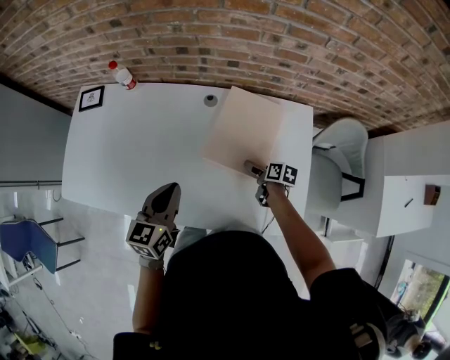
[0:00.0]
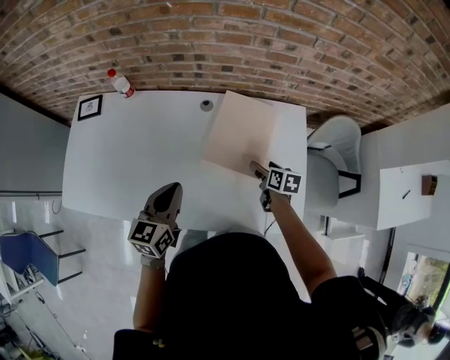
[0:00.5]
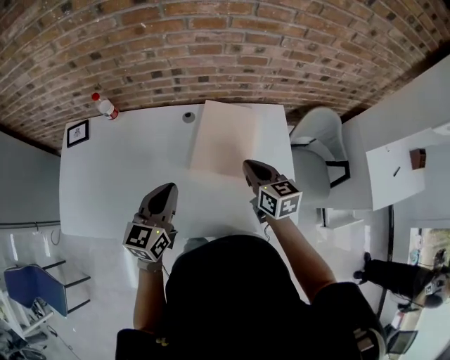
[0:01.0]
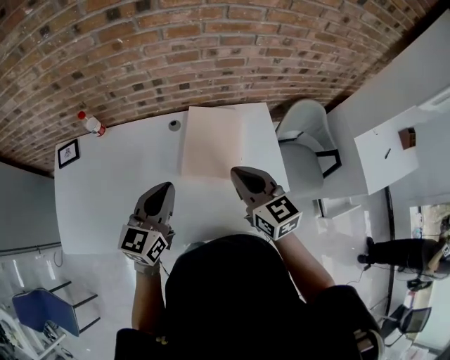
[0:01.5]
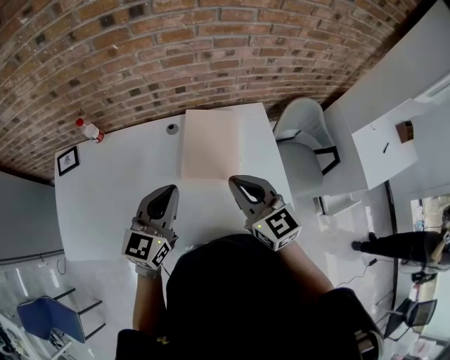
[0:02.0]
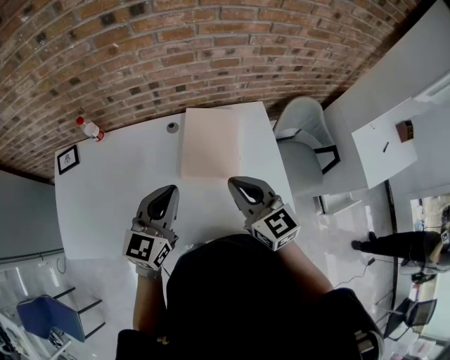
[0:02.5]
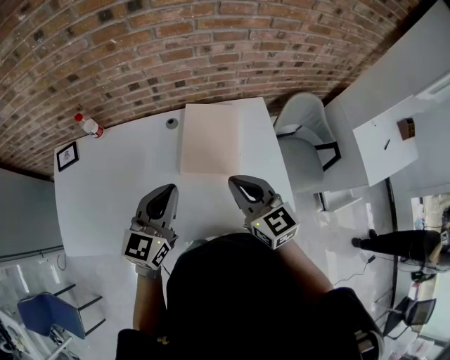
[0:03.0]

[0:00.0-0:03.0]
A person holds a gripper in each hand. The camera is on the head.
0:00.0 to 0:01.5: The left gripper heads upward, covering about 10 cm, and changes its angle by about 20 degrees, while the right gripper travels upward by some 35 cm, angles its fingers upward, by about 30 degrees, and closes up.
0:01.5 to 0:03.0: The grippers move only a little.

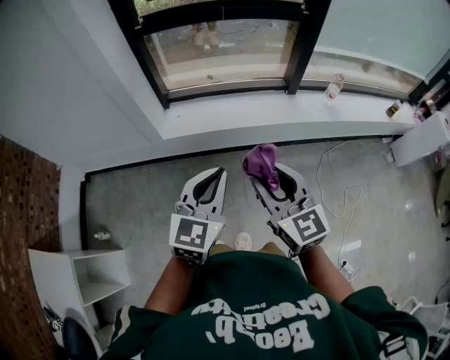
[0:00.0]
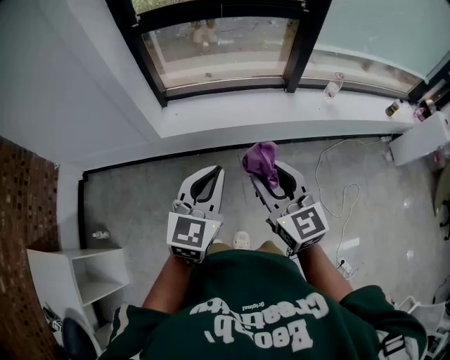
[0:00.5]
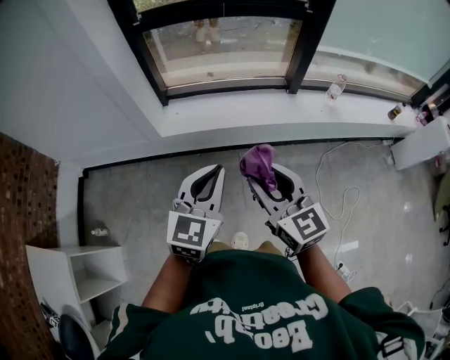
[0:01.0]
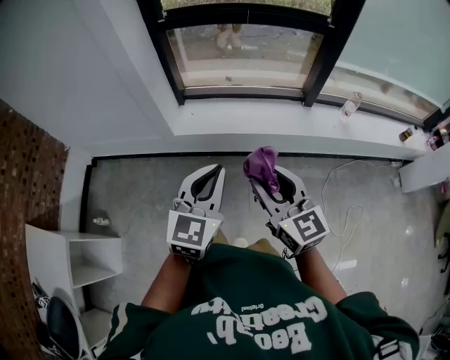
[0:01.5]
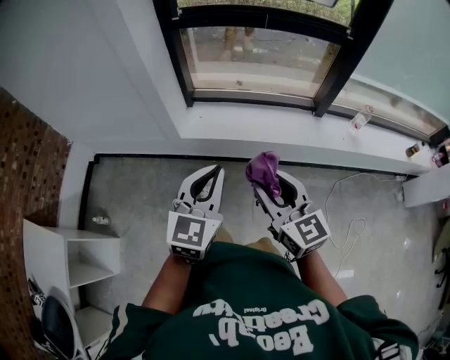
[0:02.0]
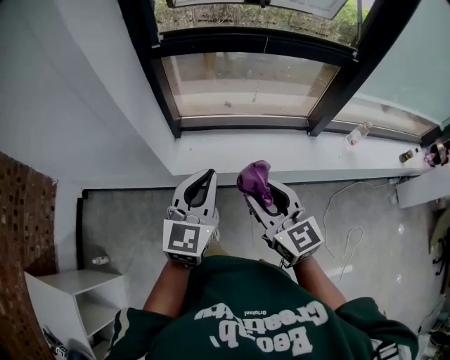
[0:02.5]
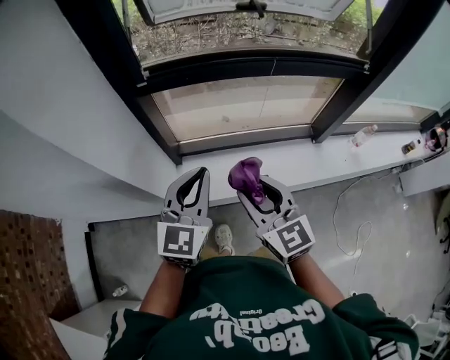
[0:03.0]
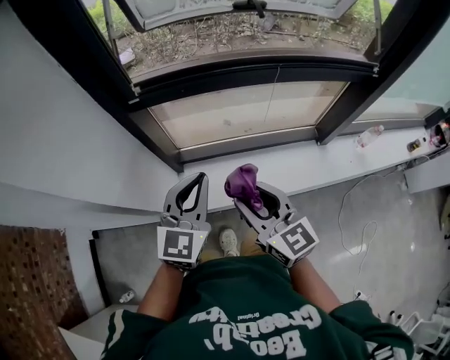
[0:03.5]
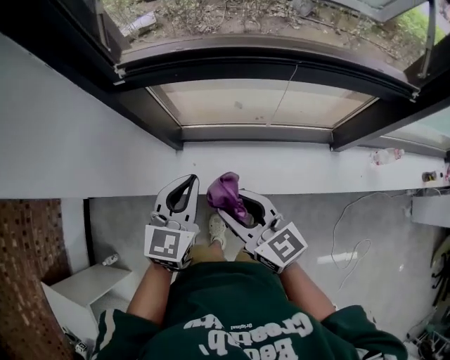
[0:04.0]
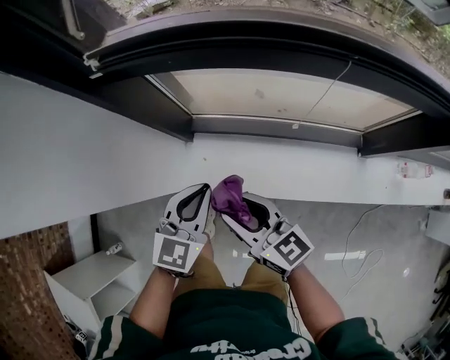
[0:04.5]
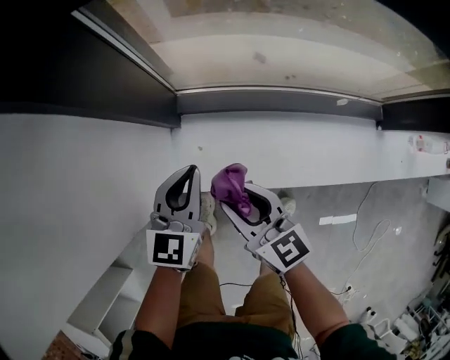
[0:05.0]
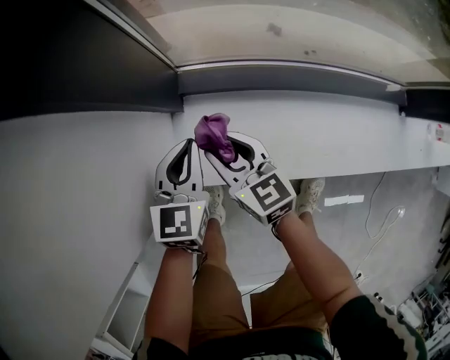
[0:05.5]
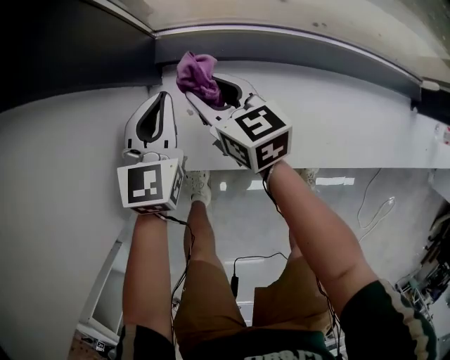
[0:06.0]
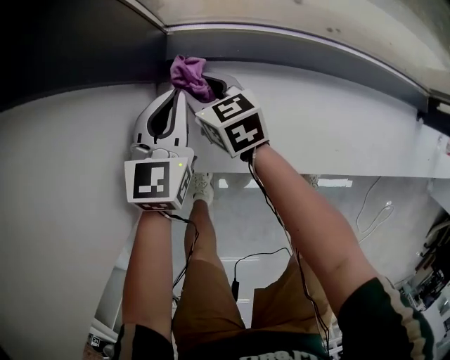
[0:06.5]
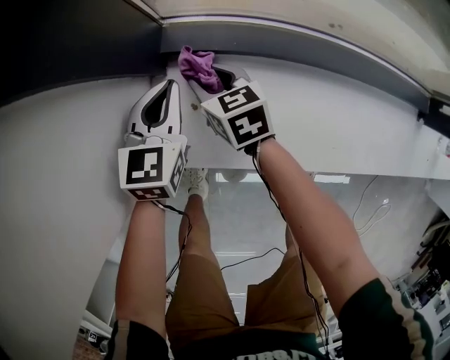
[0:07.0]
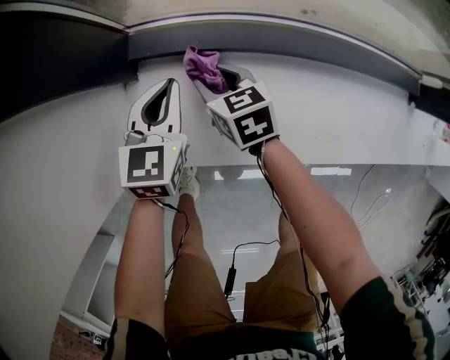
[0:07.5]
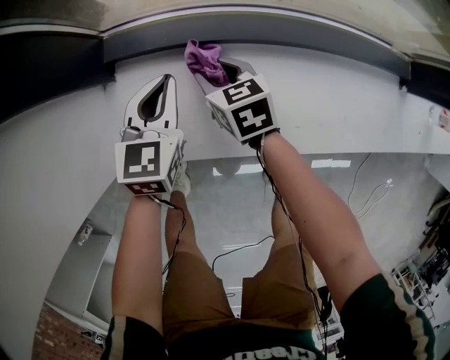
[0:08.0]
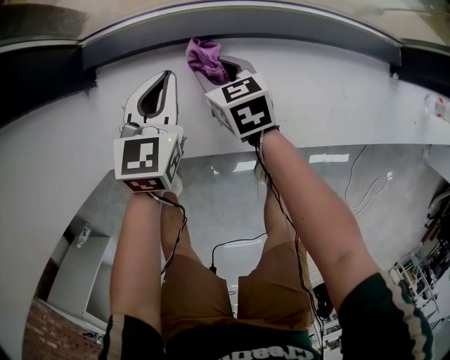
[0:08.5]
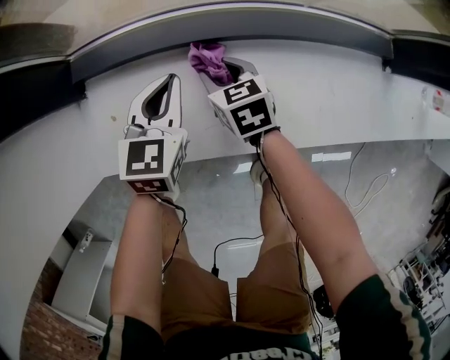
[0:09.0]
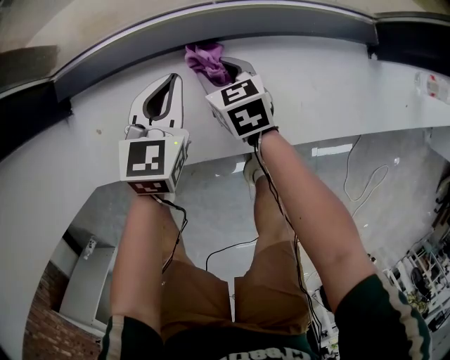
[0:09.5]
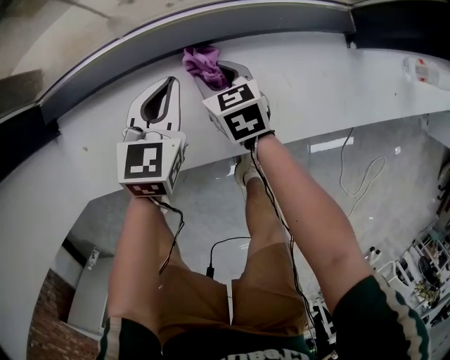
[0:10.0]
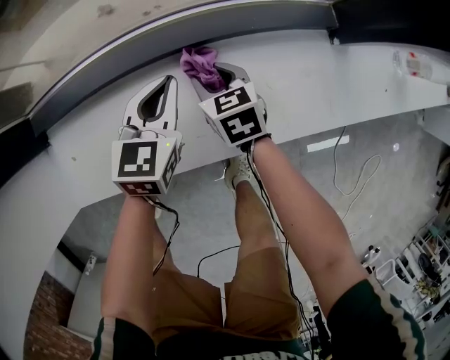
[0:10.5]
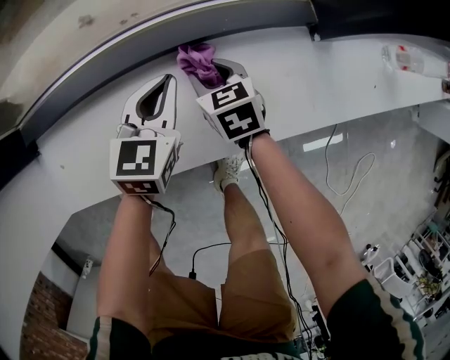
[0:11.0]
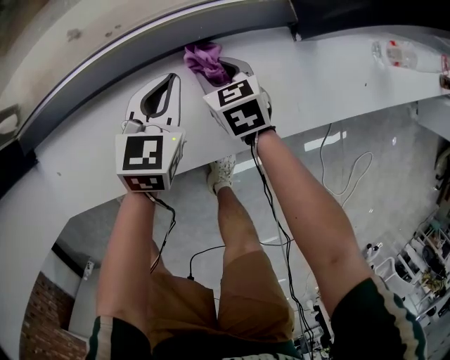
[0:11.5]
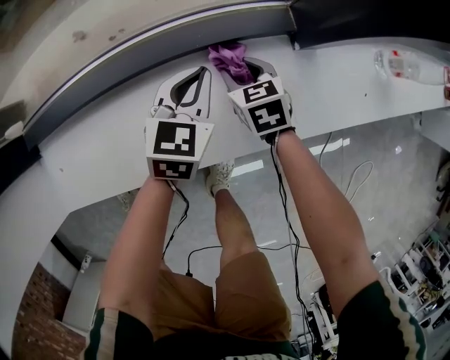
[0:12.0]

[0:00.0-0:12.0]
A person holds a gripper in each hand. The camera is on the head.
0:00.0 to 0:02.0: The grippers both shift forward by some 5 cm.
0:02.0 to 0:04.0: Both grippers are carried forward, roughly 40 cm.
0:04.0 to 0:06.0: The grippers both shift downward and forward by approximately 50 cm.
0:06.0 to 0:08.0: The right gripper heads to the right and downward, covering roughly 15 cm, while the left gripper heads to the right, covering about 10 cm.
0:08.0 to 0:10.0: Both grippers travel together to the right, some 25 cm.
0:10.0 to 0:12.0: The two grippers go some 25 cm to the right.

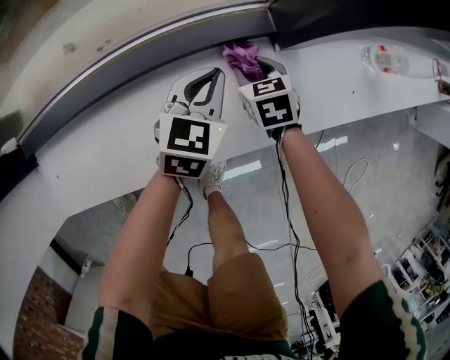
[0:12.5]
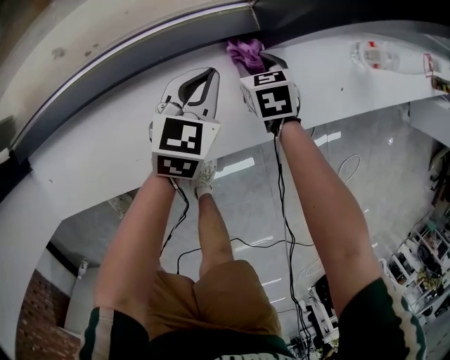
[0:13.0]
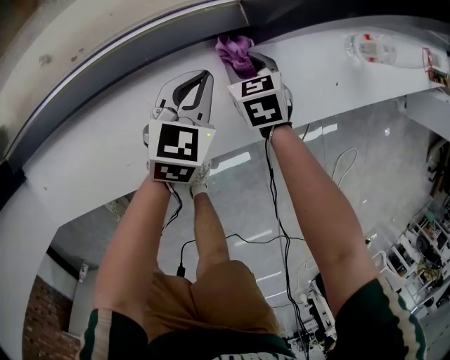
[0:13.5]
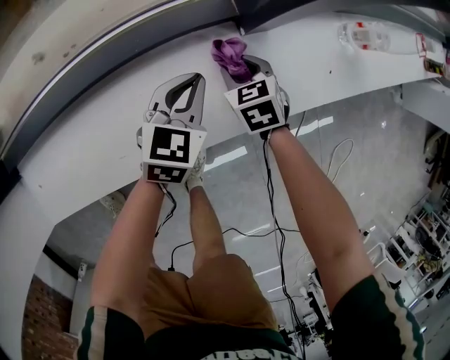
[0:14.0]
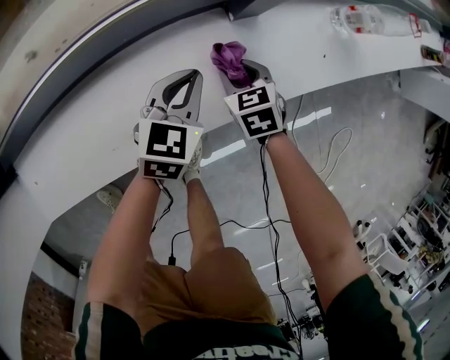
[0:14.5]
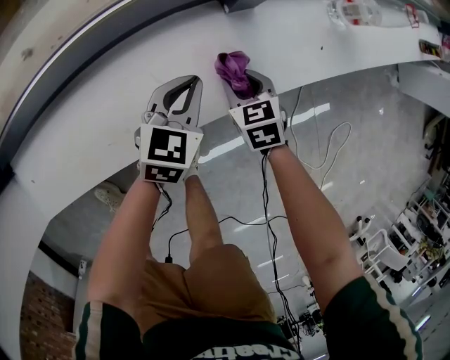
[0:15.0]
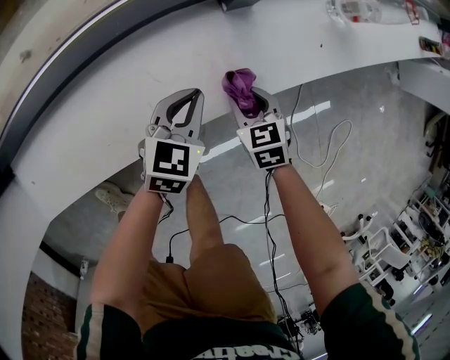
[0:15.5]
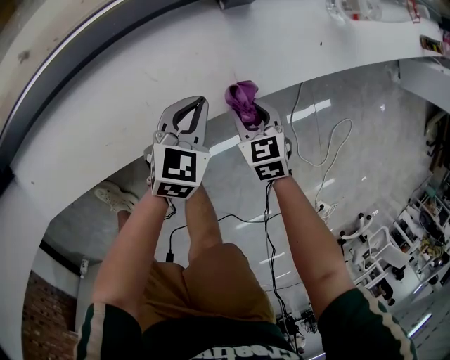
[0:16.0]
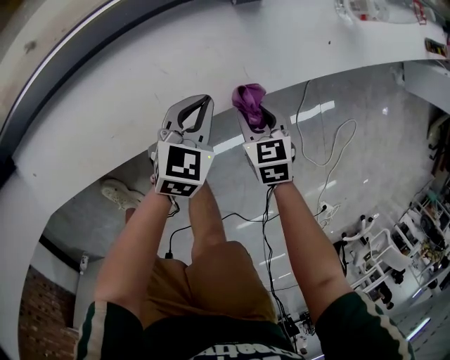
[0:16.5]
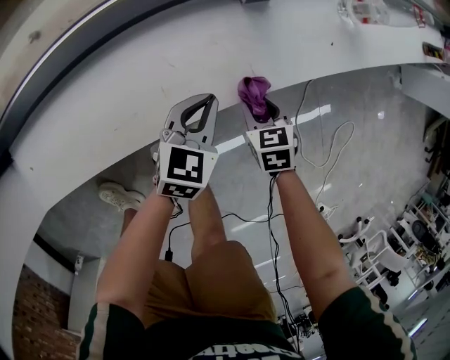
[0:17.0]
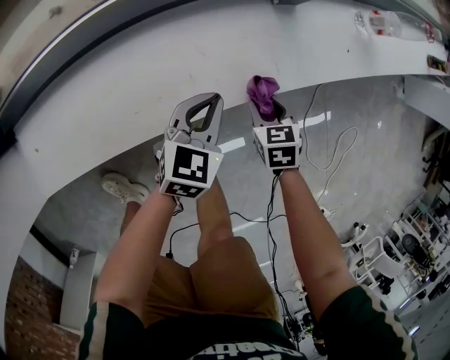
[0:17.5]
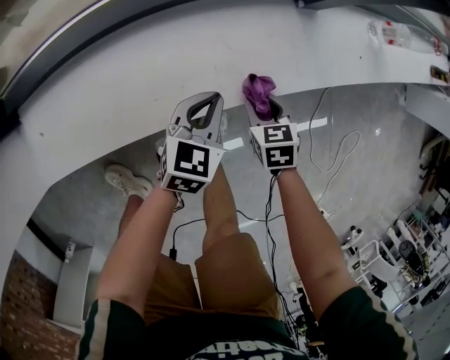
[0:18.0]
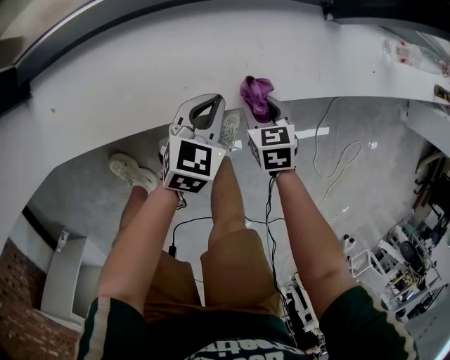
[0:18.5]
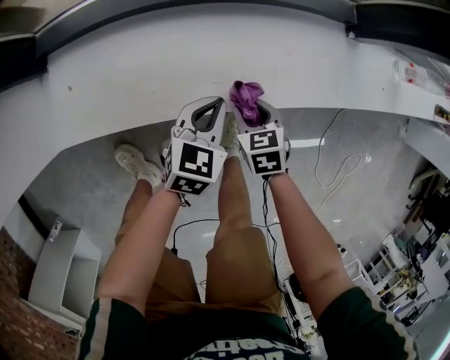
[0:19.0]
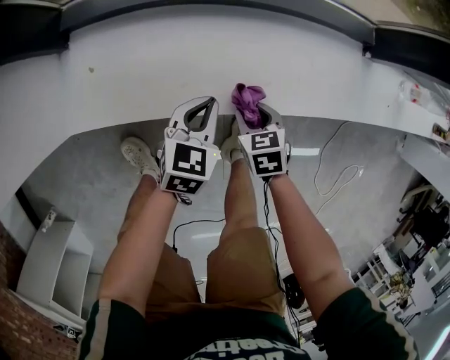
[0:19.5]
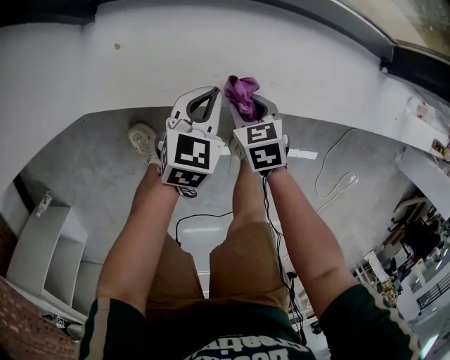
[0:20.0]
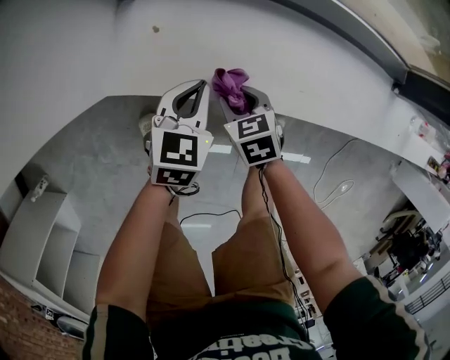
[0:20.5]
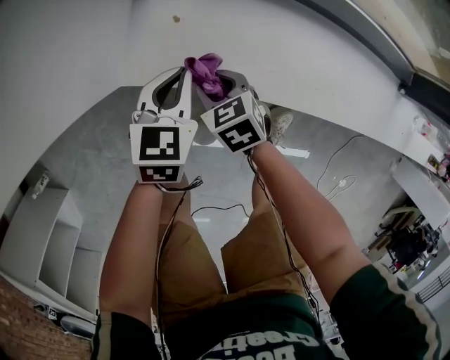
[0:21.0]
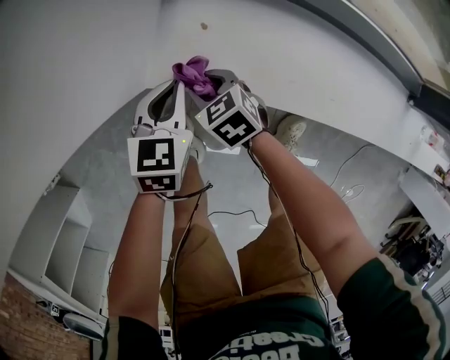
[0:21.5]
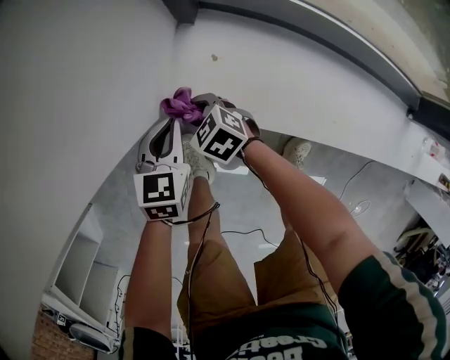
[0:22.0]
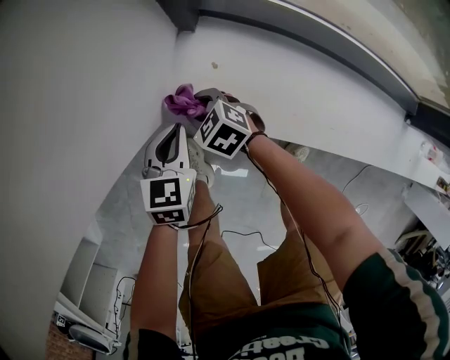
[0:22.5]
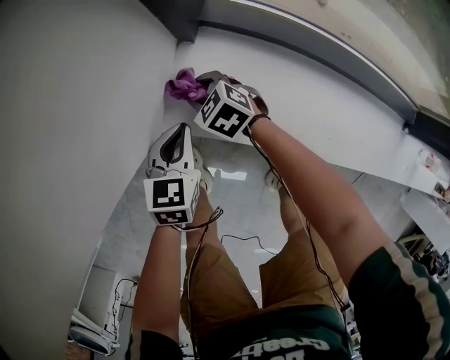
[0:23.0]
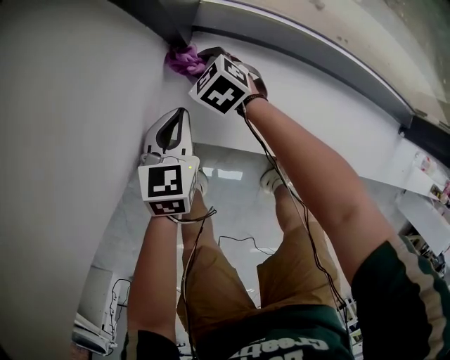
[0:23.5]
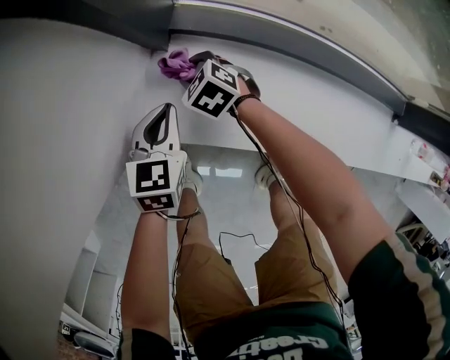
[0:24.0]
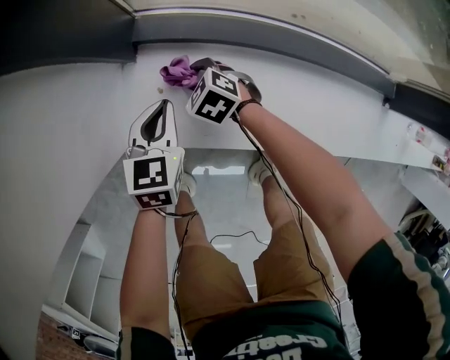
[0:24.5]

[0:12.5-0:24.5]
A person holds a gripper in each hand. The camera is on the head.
0:12.5 to 0:14.5: The left gripper shifts about 5 cm to the right and backward; the right gripper shifts roughly 10 cm backward and to the right.
0:14.5 to 0:16.5: Both grippers travel together backward, roughly 10 cm.
0:16.5 to 0:18.5: The left gripper shifts roughly 20 cm to the left and backward. Meanwhile the right gripper heads to the left, covering about 15 cm.
0:18.5 to 0:20.5: The left gripper ends up some 35 cm from where it was, and swivels roughly 30 degrees, while the right gripper shifts by roughly 35 cm, and changes its angle by approximately 30 degrees.
0:20.5 to 0:22.5: The left gripper changes place by some 20 cm. Meanwhile the right gripper changes place by approximately 25 cm, and swivels about 40 degrees.
0:22.5 to 0:24.5: The two grippers go about 15 cm to the right.
